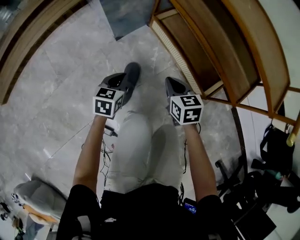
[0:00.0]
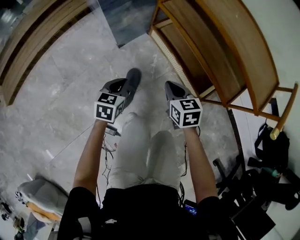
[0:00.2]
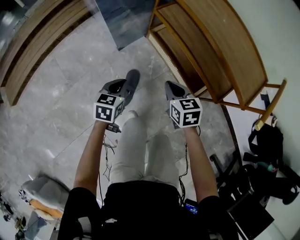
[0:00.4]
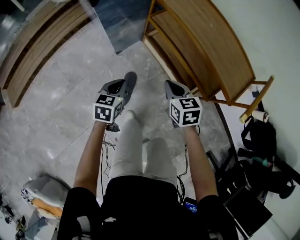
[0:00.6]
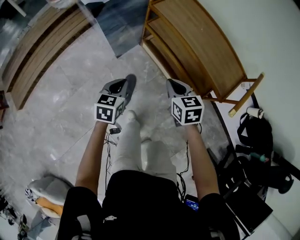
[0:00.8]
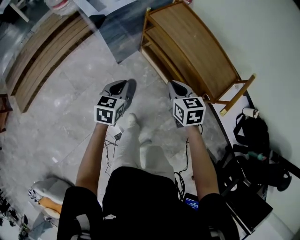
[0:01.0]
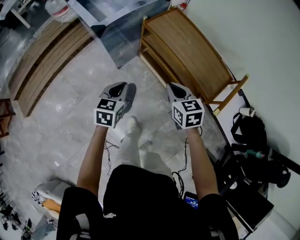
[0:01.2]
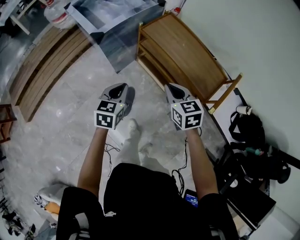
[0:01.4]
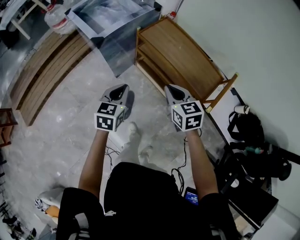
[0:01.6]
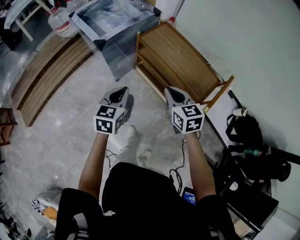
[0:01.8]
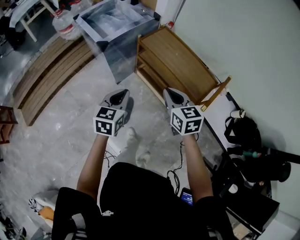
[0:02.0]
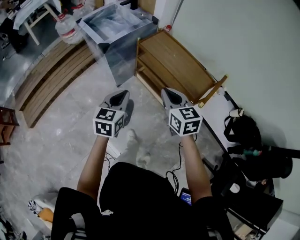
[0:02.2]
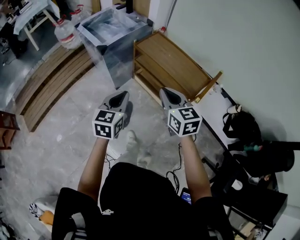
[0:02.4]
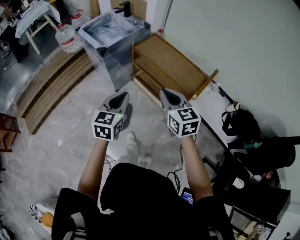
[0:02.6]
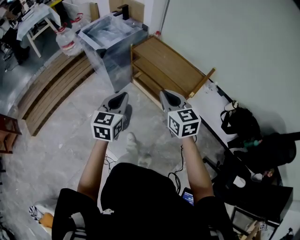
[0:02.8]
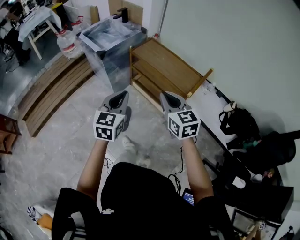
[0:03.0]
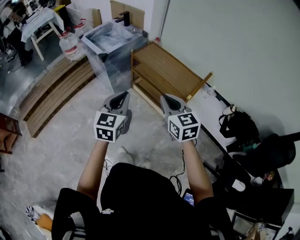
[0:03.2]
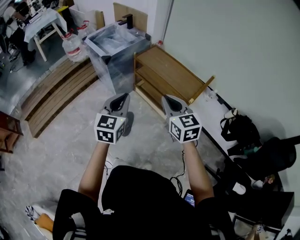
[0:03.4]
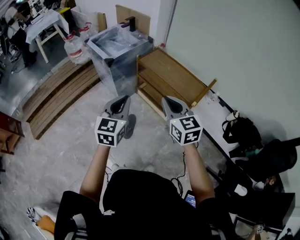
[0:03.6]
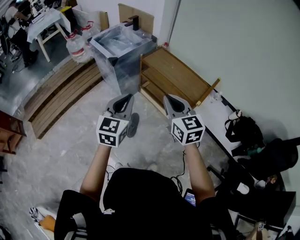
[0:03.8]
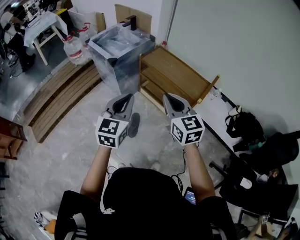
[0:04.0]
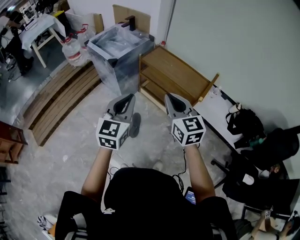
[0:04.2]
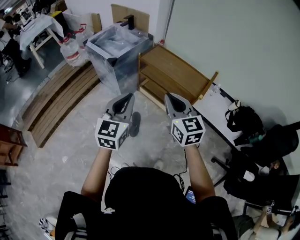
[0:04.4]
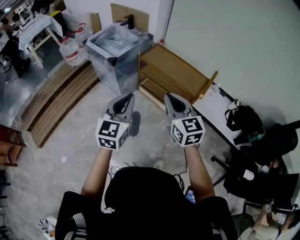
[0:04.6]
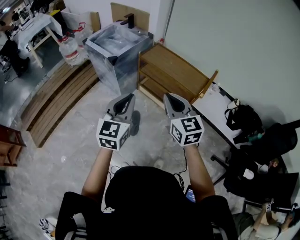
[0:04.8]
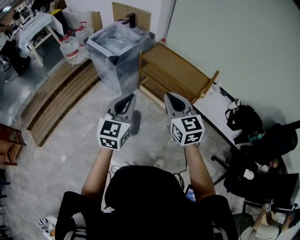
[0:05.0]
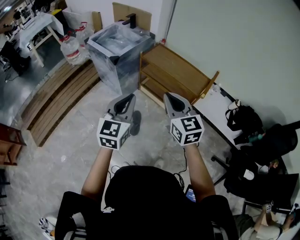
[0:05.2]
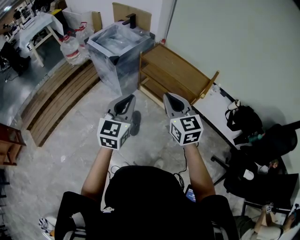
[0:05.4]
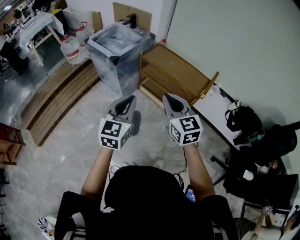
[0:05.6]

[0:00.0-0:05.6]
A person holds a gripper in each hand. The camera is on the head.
0:00.0 to 0:01.4: The grippers both shift upward by about 50 cm.
0:01.4 to 0:02.8: Both grippers move backward and upward, some 30 cm.
0:02.8 to 0:04.2: The right gripper travels to the left and upward by about 10 cm, while the left gripper travels upward and to the left by roughly 10 cm.
0:04.2 to 0:05.6: The grippers make only small movements.

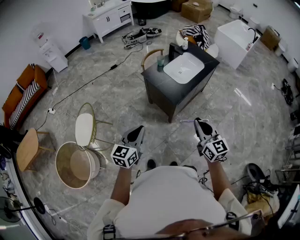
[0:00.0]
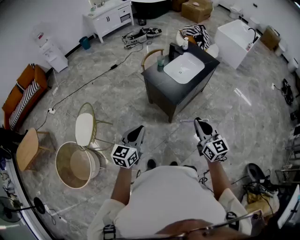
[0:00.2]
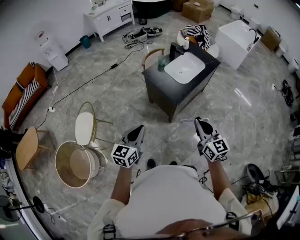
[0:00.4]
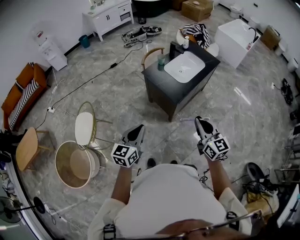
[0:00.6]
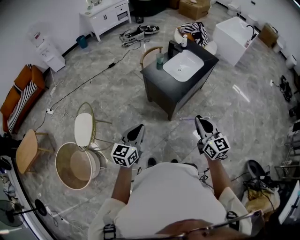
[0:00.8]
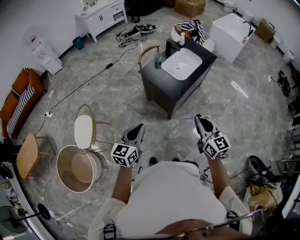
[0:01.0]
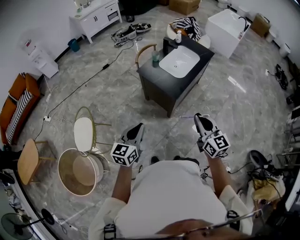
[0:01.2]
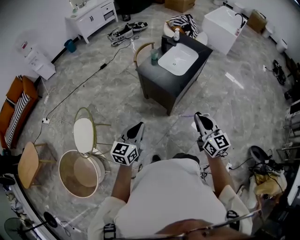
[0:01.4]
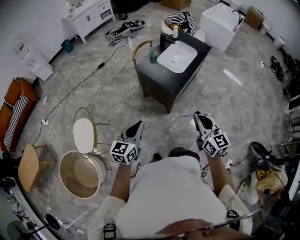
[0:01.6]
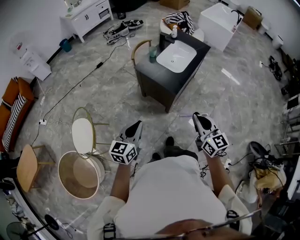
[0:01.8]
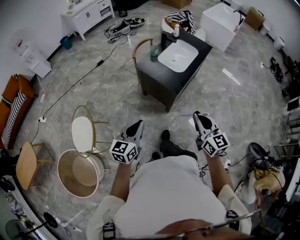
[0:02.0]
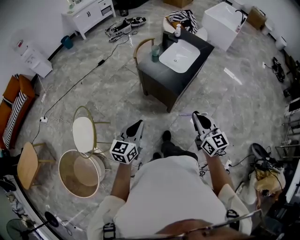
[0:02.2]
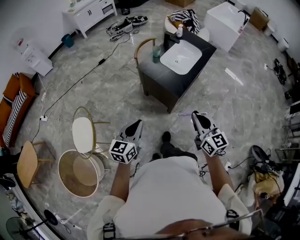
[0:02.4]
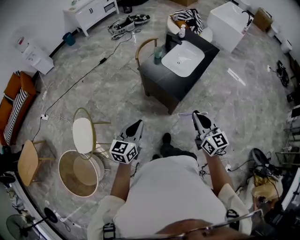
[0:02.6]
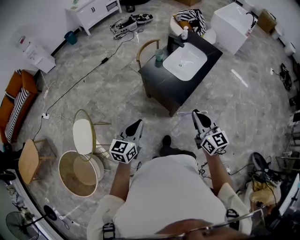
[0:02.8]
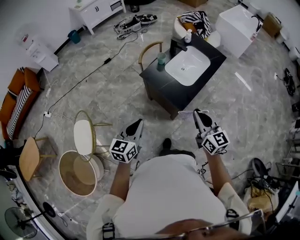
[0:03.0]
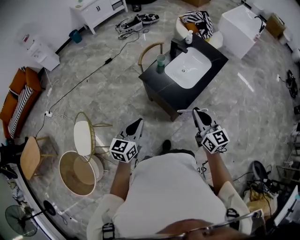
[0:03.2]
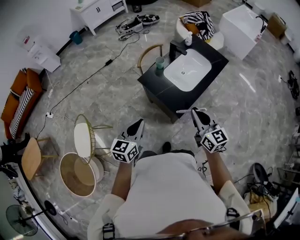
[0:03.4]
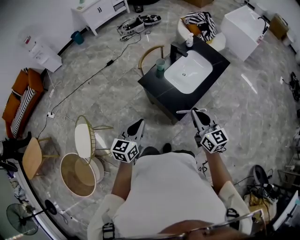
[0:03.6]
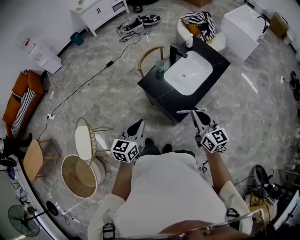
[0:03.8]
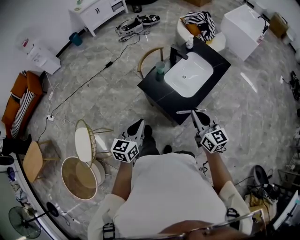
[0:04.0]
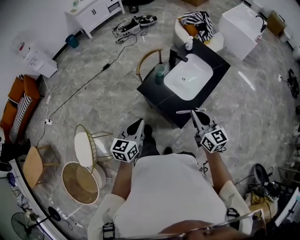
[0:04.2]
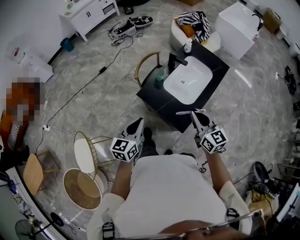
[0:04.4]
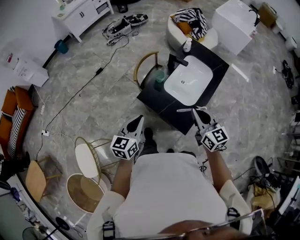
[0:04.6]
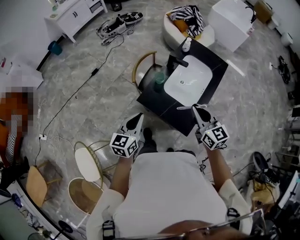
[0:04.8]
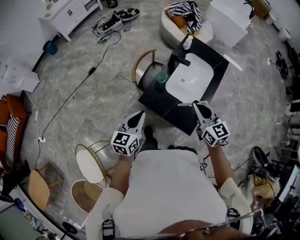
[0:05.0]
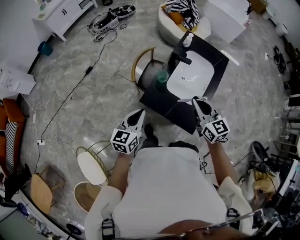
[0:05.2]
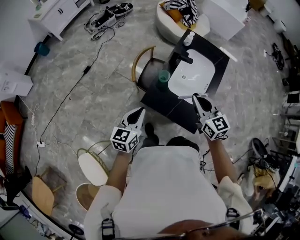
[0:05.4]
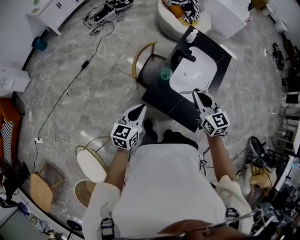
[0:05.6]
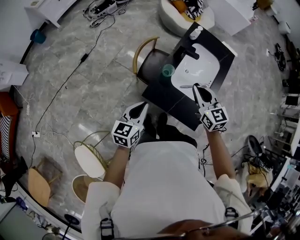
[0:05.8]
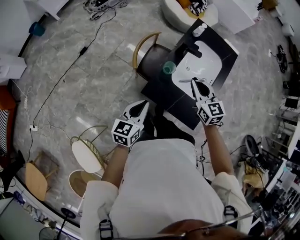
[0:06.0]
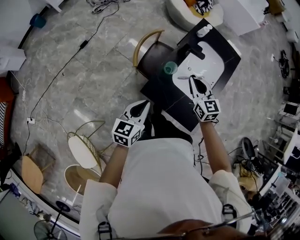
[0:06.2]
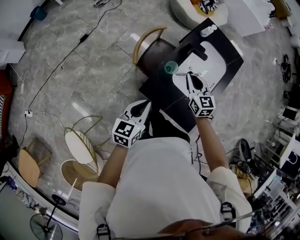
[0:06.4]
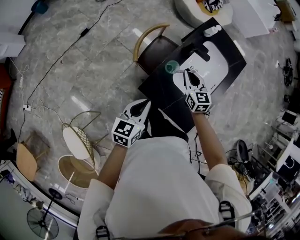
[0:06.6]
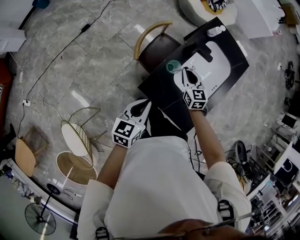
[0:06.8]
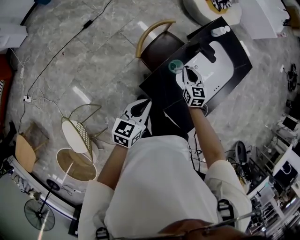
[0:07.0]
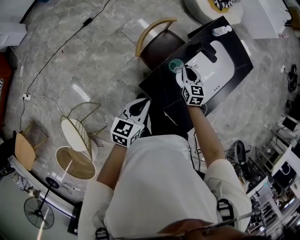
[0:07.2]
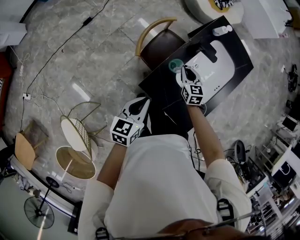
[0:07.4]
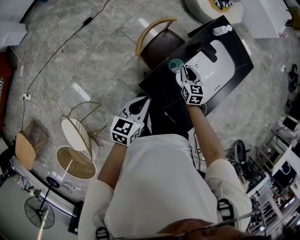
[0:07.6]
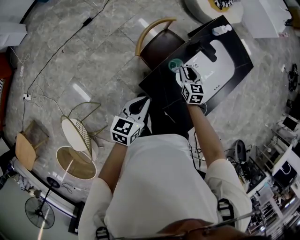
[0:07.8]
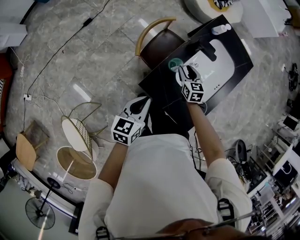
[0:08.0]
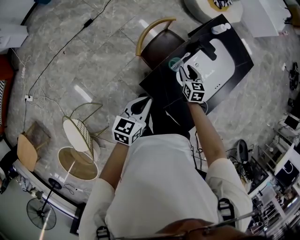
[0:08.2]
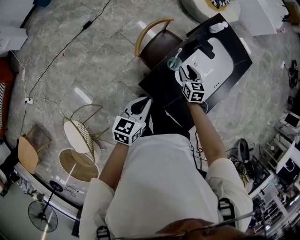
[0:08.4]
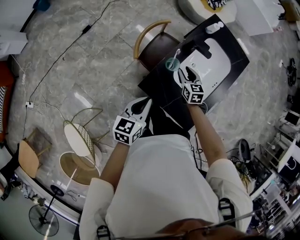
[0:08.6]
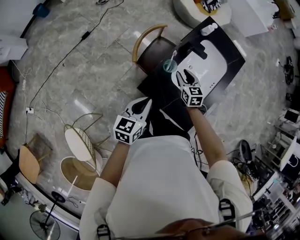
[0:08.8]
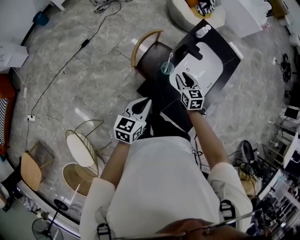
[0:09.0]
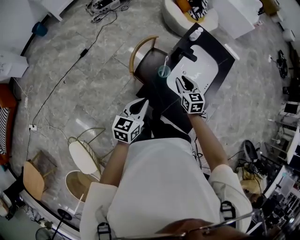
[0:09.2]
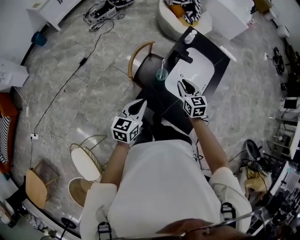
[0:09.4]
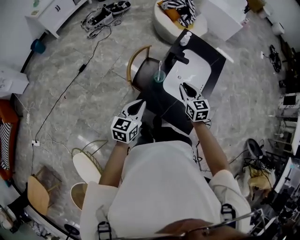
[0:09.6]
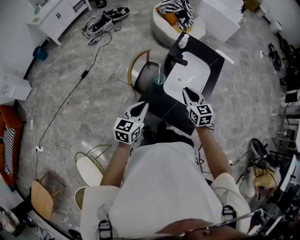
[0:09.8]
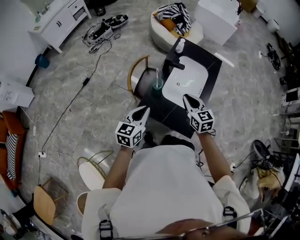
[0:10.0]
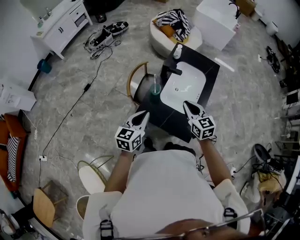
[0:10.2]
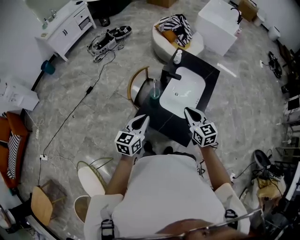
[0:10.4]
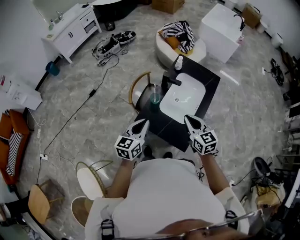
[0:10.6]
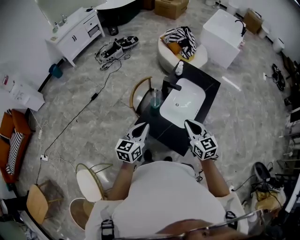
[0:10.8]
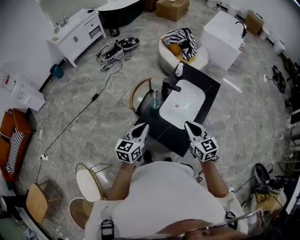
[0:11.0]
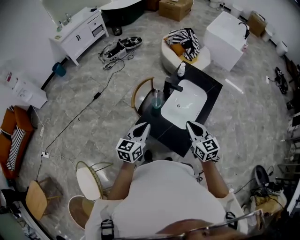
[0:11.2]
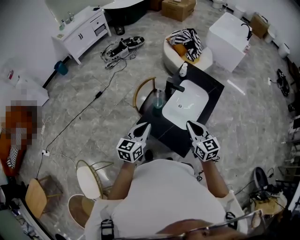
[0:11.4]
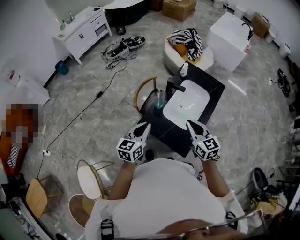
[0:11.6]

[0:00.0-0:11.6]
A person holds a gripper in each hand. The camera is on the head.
0:00.0 to 0:01.4: The two grippers go about 5 cm to the left.
0:01.4 to 0:02.8: The grippers both shift forward by roughly 15 cm.
0:02.8 to 0:04.4: Both grippers move forward, about 25 cm.
0:04.4 to 0:05.8: The two grippers go about 20 cm forward and to the left.
0:05.8 to 0:07.2: The right gripper moves downward and forward, some 25 cm; the left gripper goes approximately 5 cm downward.
0:07.2 to 0:08.8: The right gripper opens.
0:08.8 to 0:10.2: The right gripper moves upward, backward and to the right, roughly 25 cm, and closes up. Meanwhile the left gripper travels upward by about 10 cm.
0:10.2 to 0:11.6: The right gripper heads upward, covering some 5 cm; the left gripper changes place by approximately 5 cm.

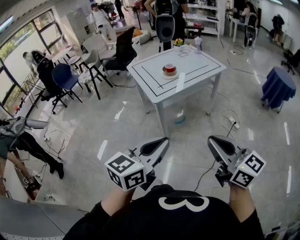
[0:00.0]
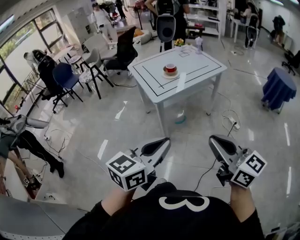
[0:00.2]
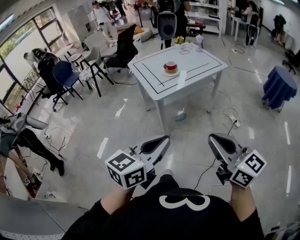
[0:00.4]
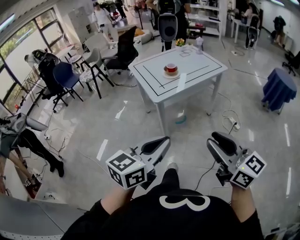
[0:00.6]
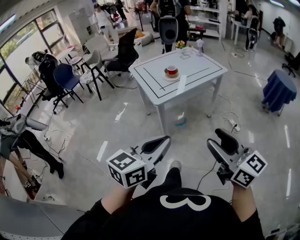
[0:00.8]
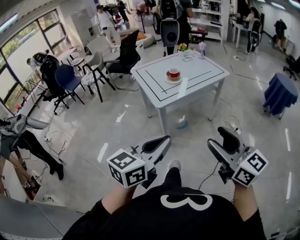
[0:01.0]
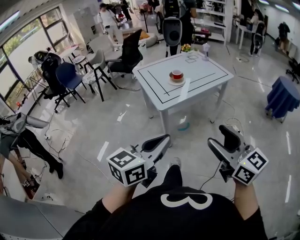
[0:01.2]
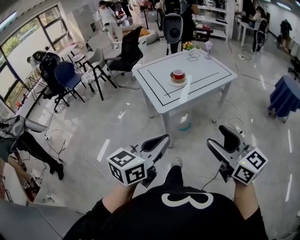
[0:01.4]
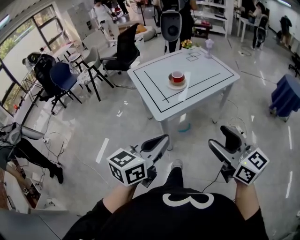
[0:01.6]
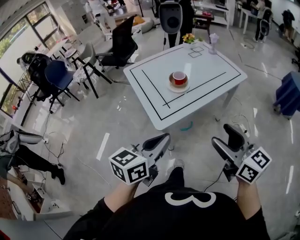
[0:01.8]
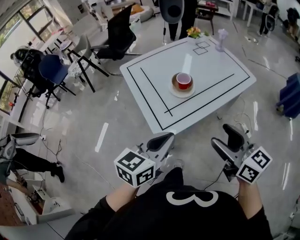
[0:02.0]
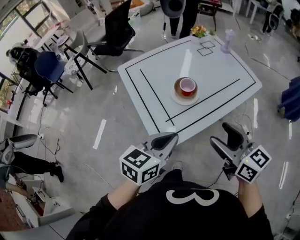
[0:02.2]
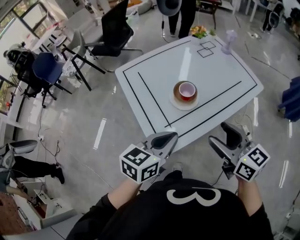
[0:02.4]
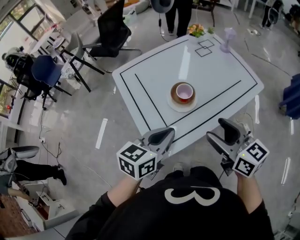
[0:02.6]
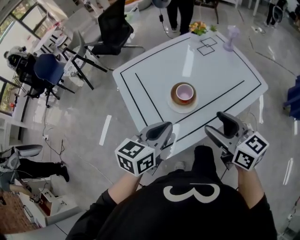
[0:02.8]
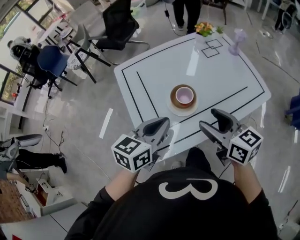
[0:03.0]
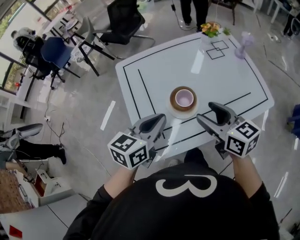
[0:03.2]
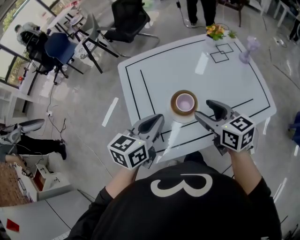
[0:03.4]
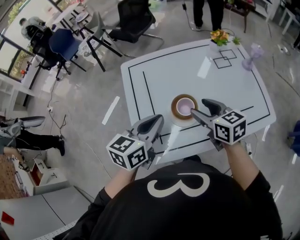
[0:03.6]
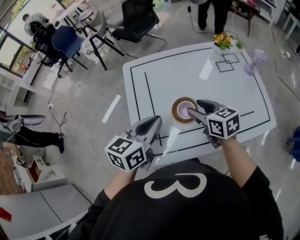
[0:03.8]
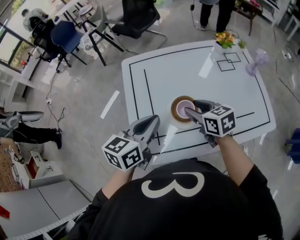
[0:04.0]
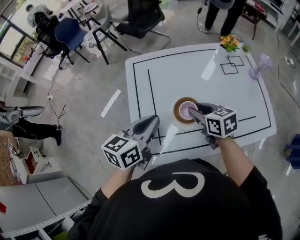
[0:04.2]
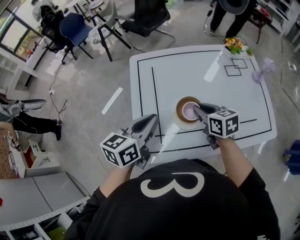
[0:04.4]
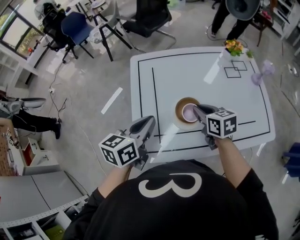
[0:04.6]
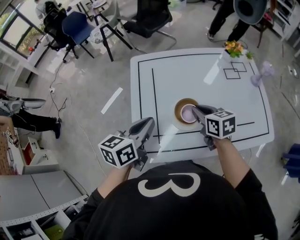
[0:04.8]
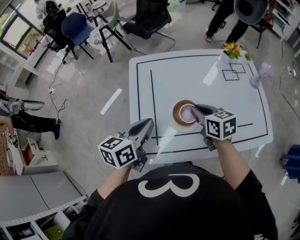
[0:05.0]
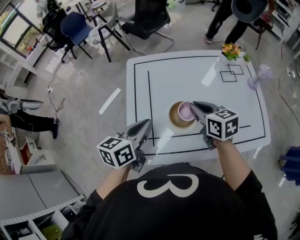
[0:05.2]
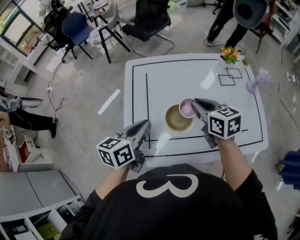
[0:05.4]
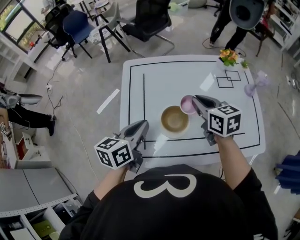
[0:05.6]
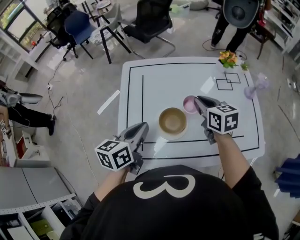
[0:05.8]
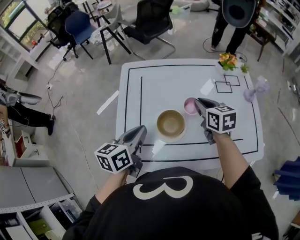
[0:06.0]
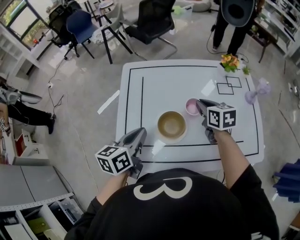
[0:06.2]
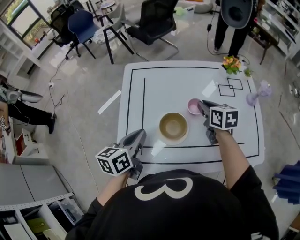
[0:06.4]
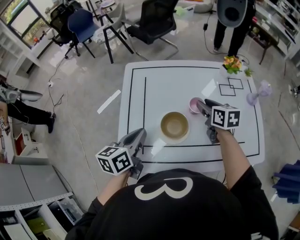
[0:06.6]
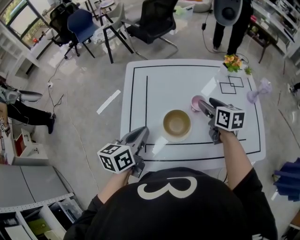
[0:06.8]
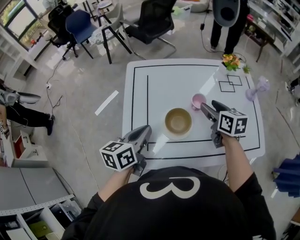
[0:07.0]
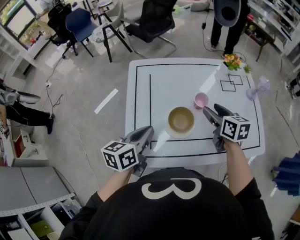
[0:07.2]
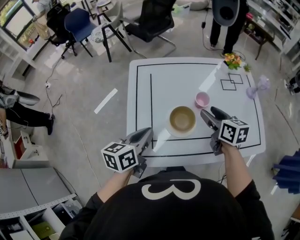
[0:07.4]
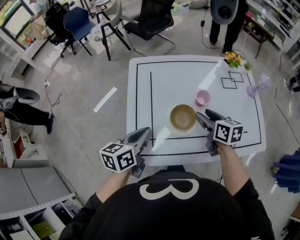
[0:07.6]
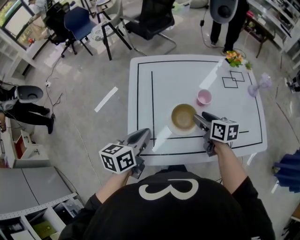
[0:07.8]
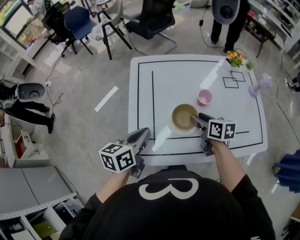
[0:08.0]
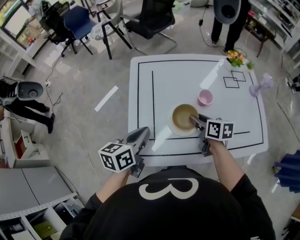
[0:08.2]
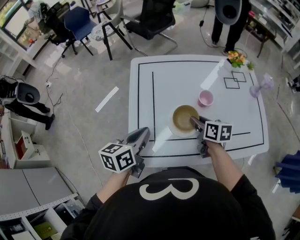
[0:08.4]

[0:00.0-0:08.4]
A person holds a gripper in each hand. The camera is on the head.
0:00.0 to 0:01.4: The grippers both shift forward by some 10 cm. The right gripper opens up.
0:01.4 to 0:02.8: Both grippers are carried forward, some 50 cm.
0:02.8 to 0:04.2: The right gripper shifts some 20 cm forward and downward, turns by roughly 30 degrees, and closes its fingers; the left gripper is displaced forward by roughly 10 cm, and swivels roughly 20 degrees.
0:04.2 to 0:05.6: The right gripper moves upward, forward and to the right, roughly 10 cm.
0:05.6 to 0:07.0: The right gripper opens up.
0:07.0 to 0:08.4: The right gripper travels to the left, downward and backward by roughly 10 cm, and closes its fingers.
